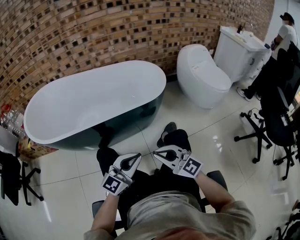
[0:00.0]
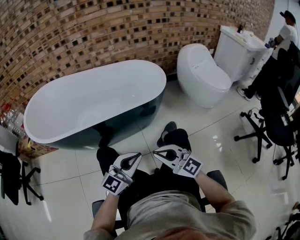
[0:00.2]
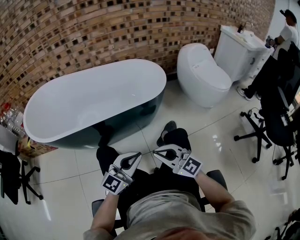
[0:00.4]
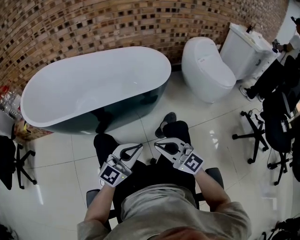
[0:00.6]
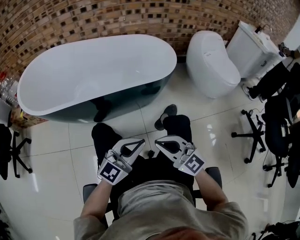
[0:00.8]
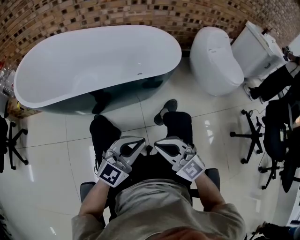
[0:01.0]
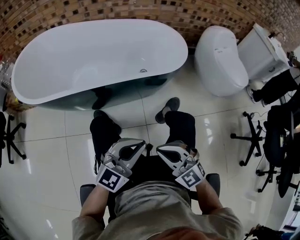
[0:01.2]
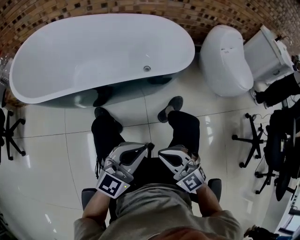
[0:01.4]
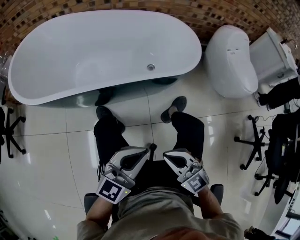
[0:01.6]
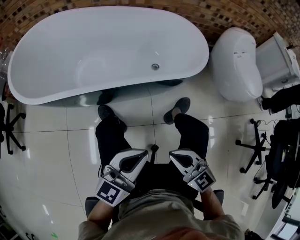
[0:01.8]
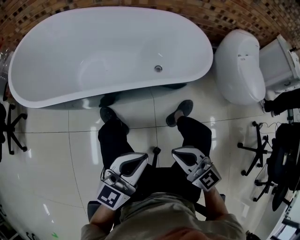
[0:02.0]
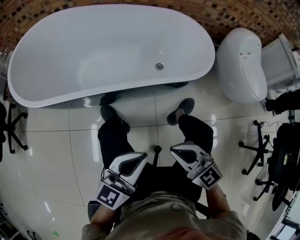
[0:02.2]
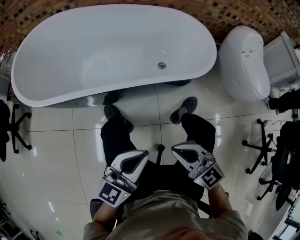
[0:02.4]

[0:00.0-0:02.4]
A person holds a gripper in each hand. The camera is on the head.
0:00.0 to 0:01.2: The right gripper ends up roughly 5 cm from where it was, and rotates about 20 degrees.
0:01.2 to 0:02.4: The right gripper travels forward by about 10 cm. Meanwhile the left gripper heads forward and to the left, covering some 10 cm, and turns by roughly 20 degrees.

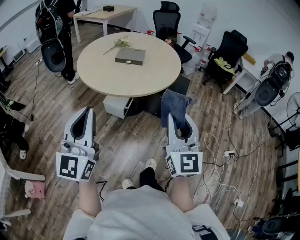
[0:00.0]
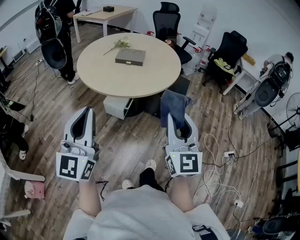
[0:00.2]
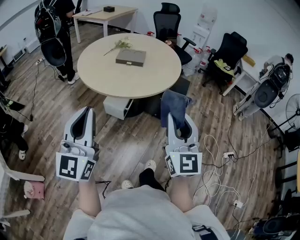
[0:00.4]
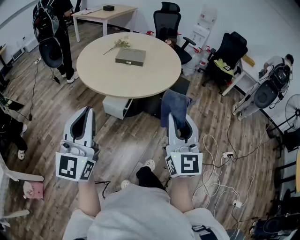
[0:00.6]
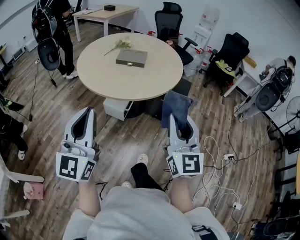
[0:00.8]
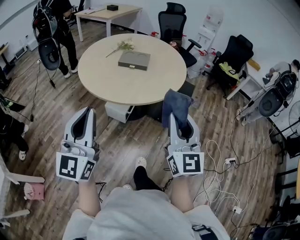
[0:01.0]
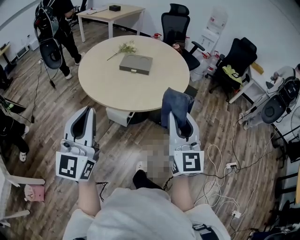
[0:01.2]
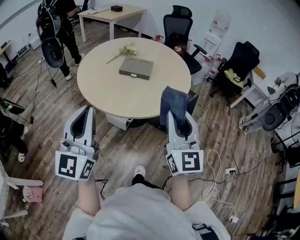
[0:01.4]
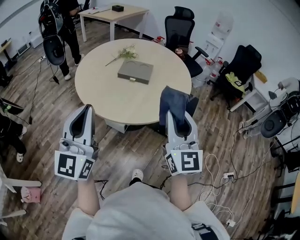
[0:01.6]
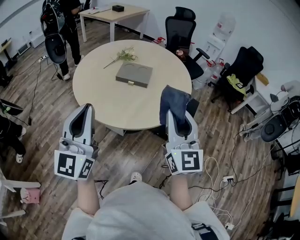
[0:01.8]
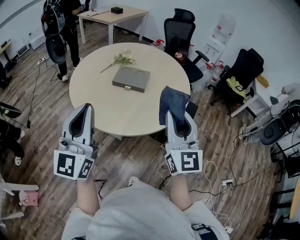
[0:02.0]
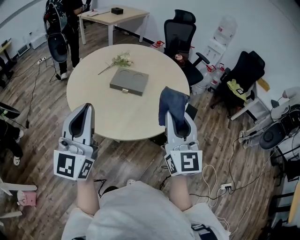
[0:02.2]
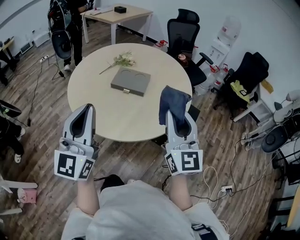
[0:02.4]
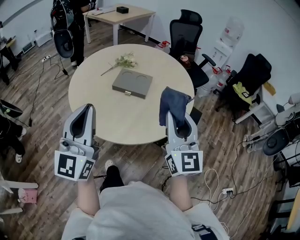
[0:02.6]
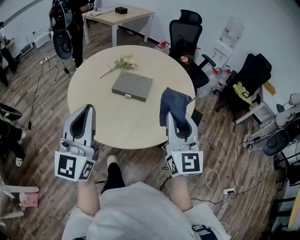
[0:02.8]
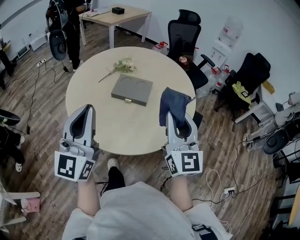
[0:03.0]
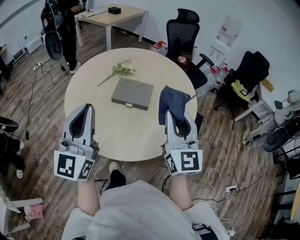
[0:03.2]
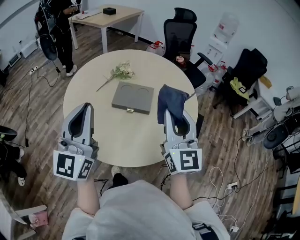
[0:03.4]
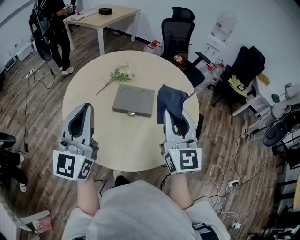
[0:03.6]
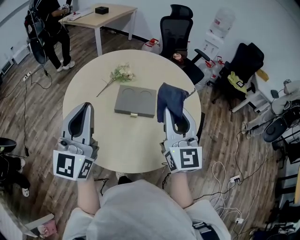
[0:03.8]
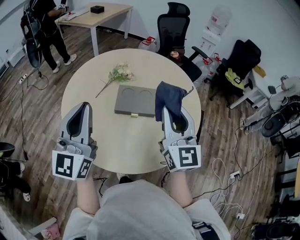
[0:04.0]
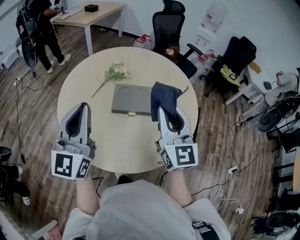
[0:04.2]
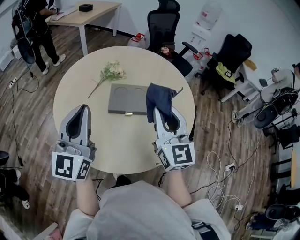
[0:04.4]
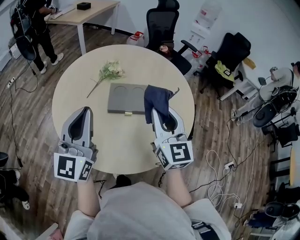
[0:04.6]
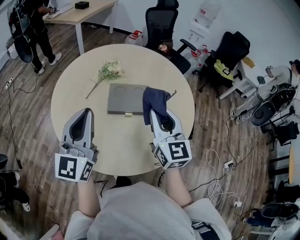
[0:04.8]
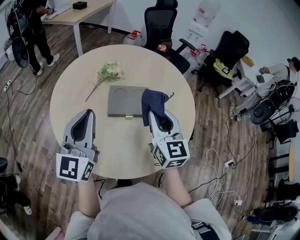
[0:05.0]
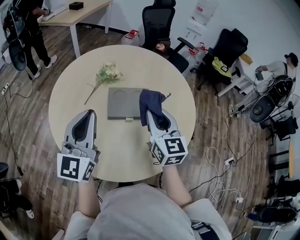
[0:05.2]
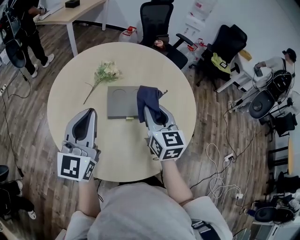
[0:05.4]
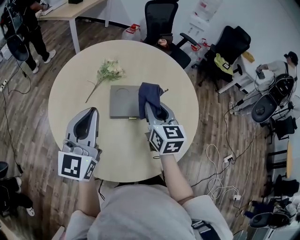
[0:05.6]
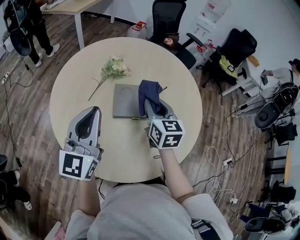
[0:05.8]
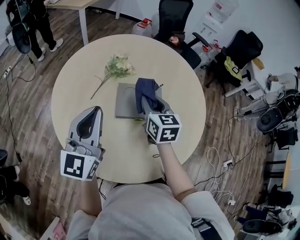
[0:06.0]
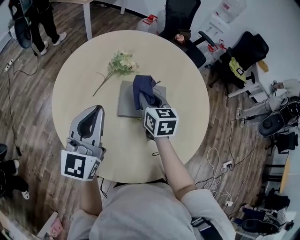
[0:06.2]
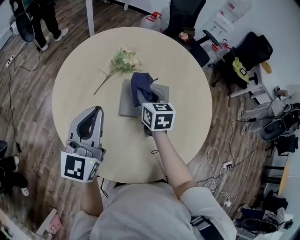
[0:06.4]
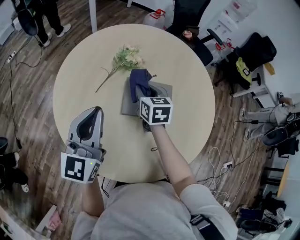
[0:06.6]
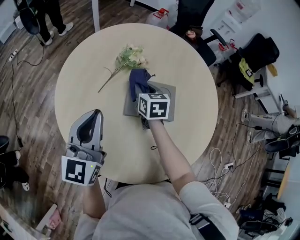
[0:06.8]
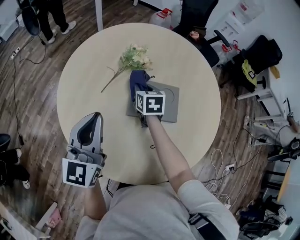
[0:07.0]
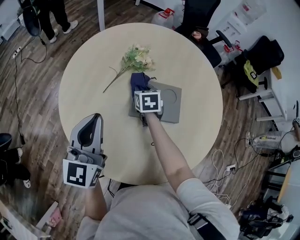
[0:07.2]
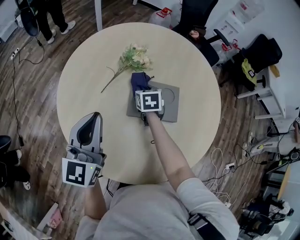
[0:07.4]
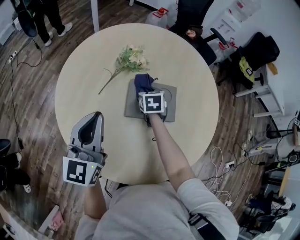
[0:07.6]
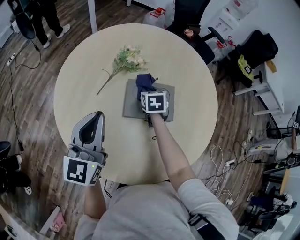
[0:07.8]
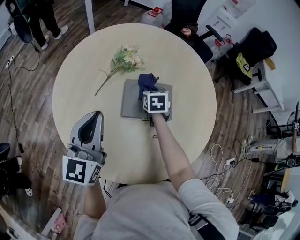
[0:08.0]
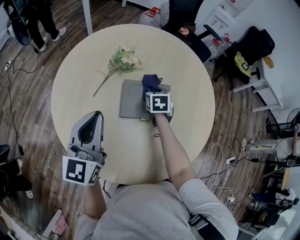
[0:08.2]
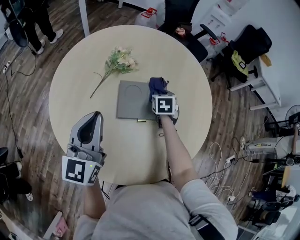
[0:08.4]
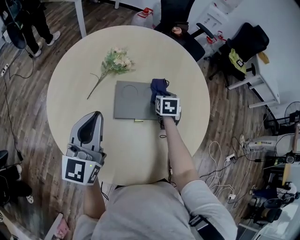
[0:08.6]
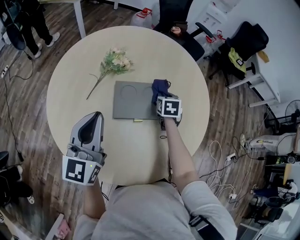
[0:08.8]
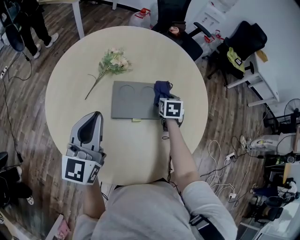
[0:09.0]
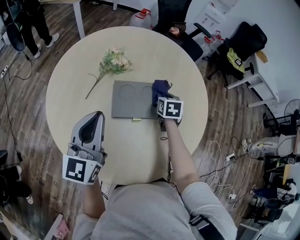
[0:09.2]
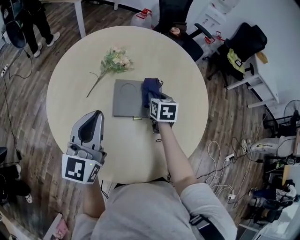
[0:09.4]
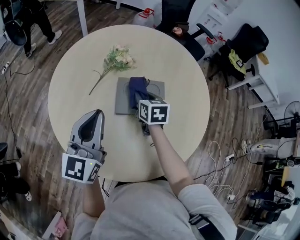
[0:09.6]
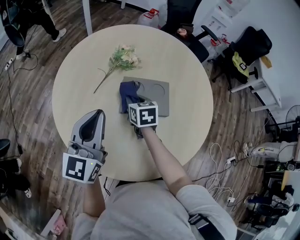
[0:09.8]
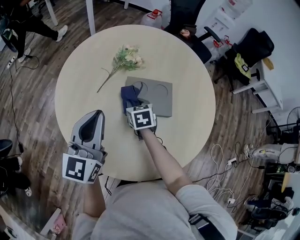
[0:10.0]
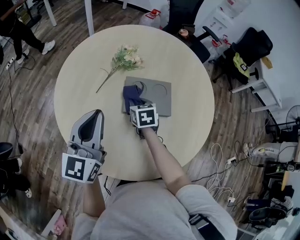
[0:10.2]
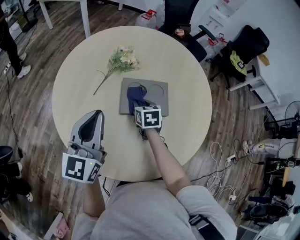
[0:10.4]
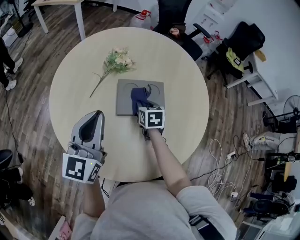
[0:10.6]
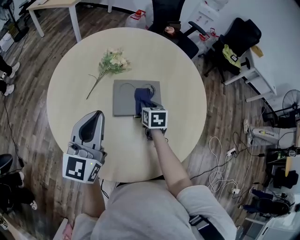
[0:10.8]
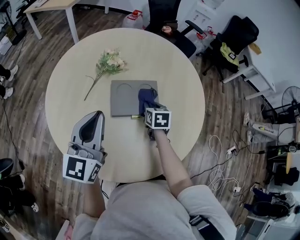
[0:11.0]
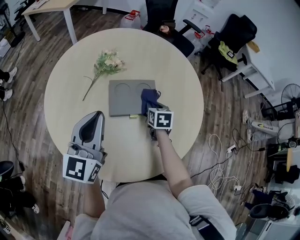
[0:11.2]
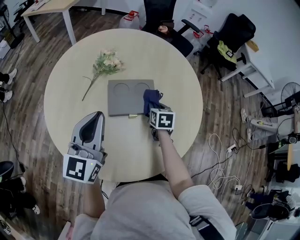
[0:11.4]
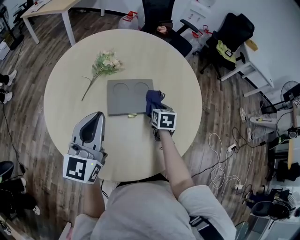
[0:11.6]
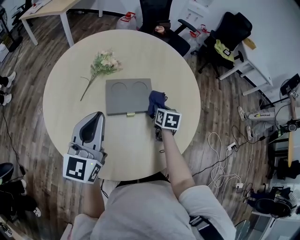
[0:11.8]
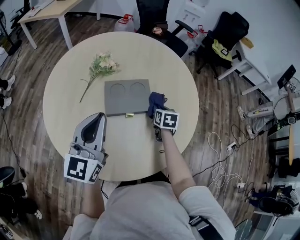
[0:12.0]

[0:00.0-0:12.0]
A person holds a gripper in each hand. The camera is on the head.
0:00.0 to 0:01.6: Both grippers move forward, roughly 20 cm.
0:01.6 to 0:03.0: Both grippers move forward, some 20 cm.
0:03.0 to 0:04.4: The right gripper is displaced to the left and forward by roughly 15 cm. The left gripper is displaced forward and to the left by approximately 20 cm.
0:04.4 to 0:06.0: The right gripper is displaced forward, downward and to the left by about 25 cm, and changes its angle by about 30 degrees. The left gripper shifts approximately 15 cm forward and downward.
0:06.0 to 0:07.6: The right gripper travels downward and forward by approximately 20 cm, and rotates roughly 30 degrees. The left gripper ends up some 5 cm from where it was.
0:07.6 to 0:09.0: The right gripper shifts approximately 20 cm to the right; the left gripper shifts roughly 5 cm to the right.
0:09.0 to 0:10.4: The right gripper is displaced to the left by about 20 cm.
0:10.4 to 0:12.0: The right gripper goes some 20 cm to the right, and rotates some 20 degrees, while the left gripper shifts approximately 10 cm to the right.

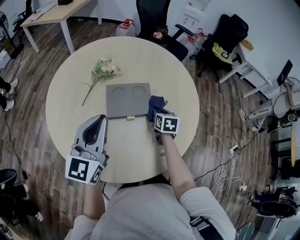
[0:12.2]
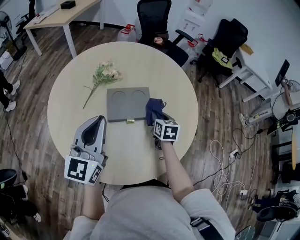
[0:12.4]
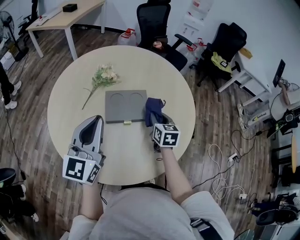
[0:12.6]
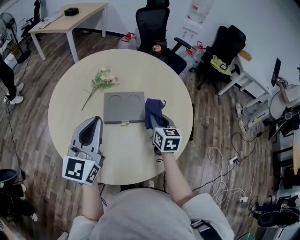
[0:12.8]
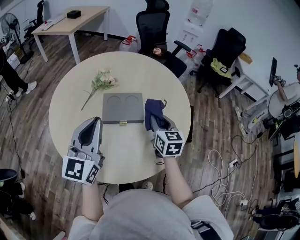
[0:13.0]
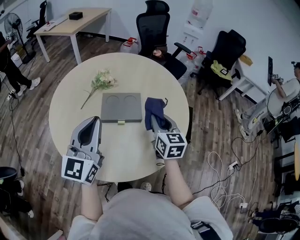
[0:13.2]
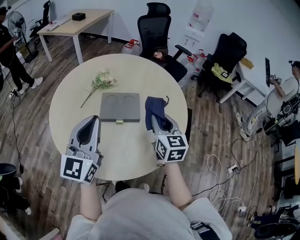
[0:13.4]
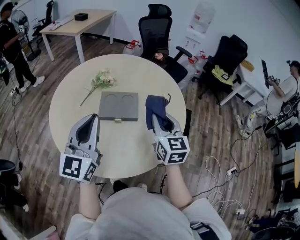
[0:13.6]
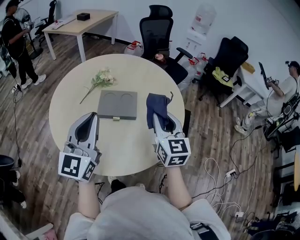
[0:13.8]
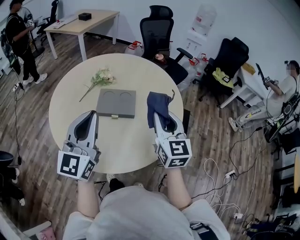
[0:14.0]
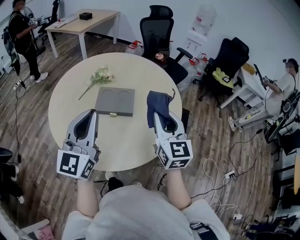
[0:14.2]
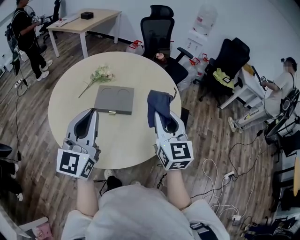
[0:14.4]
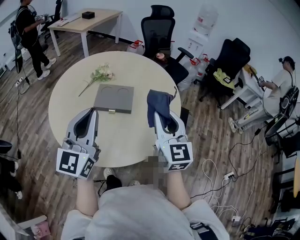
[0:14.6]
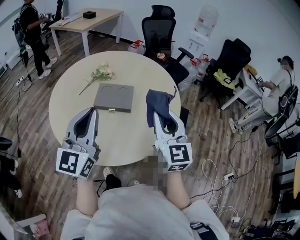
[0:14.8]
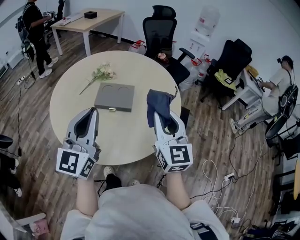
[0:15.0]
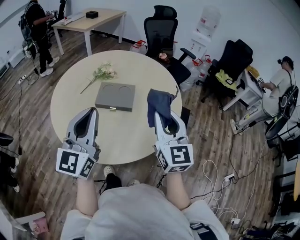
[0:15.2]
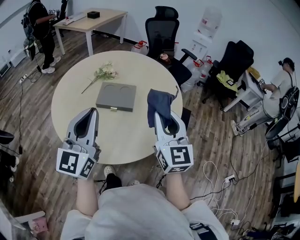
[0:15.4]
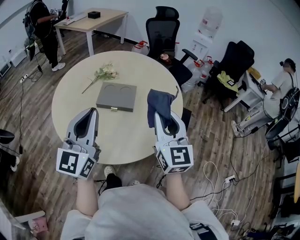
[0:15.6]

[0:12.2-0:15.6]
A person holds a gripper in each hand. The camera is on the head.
0:12.2 to 0:13.8: The left gripper travels to the right, backward and upward by roughly 15 cm; the right gripper shifts about 30 cm upward and backward, and angles its fingers upward, by roughly 40 degrees.
0:13.8 to 0:15.6: The left gripper heads backward, covering approximately 5 cm. The right gripper shifts approximately 10 cm backward and upward.

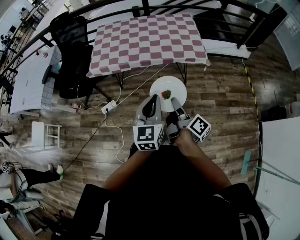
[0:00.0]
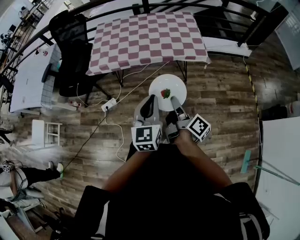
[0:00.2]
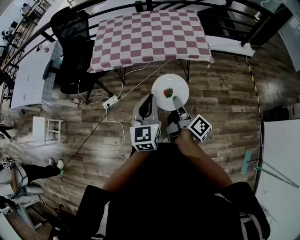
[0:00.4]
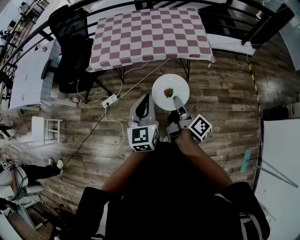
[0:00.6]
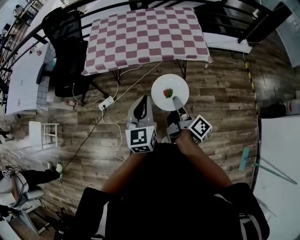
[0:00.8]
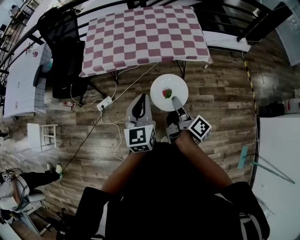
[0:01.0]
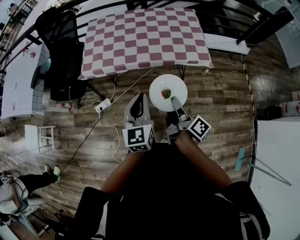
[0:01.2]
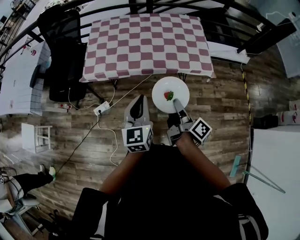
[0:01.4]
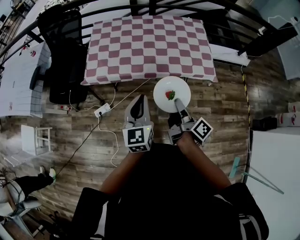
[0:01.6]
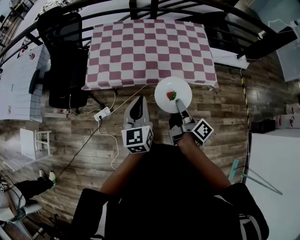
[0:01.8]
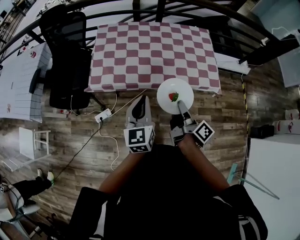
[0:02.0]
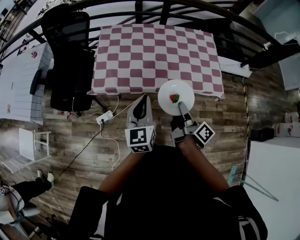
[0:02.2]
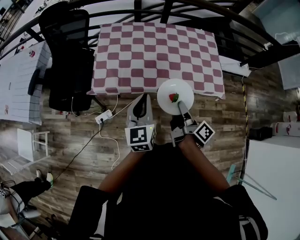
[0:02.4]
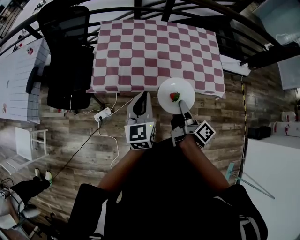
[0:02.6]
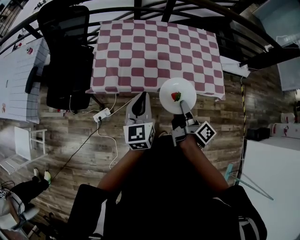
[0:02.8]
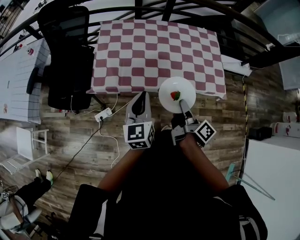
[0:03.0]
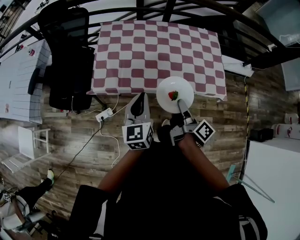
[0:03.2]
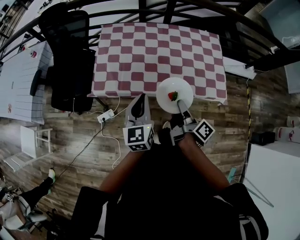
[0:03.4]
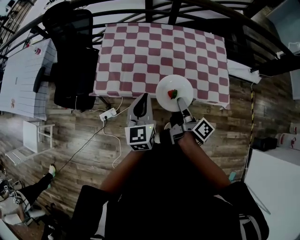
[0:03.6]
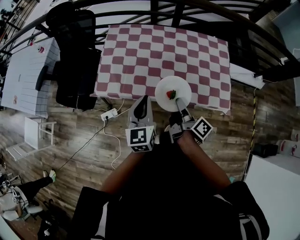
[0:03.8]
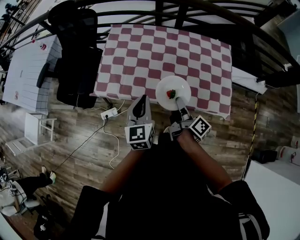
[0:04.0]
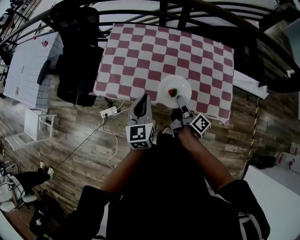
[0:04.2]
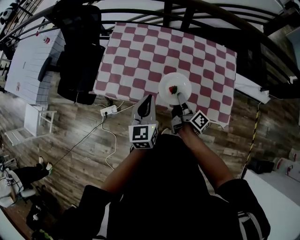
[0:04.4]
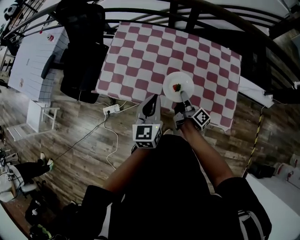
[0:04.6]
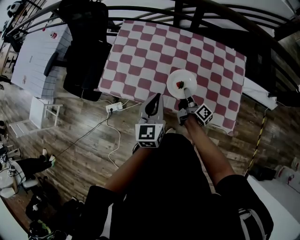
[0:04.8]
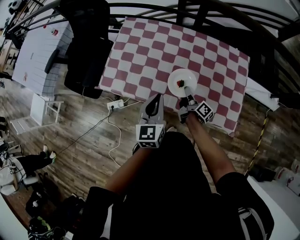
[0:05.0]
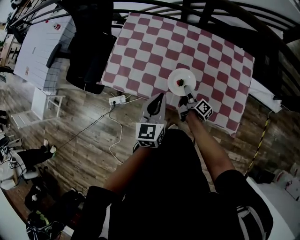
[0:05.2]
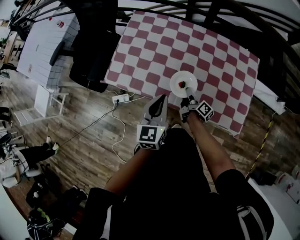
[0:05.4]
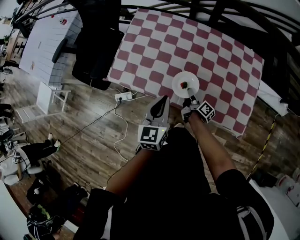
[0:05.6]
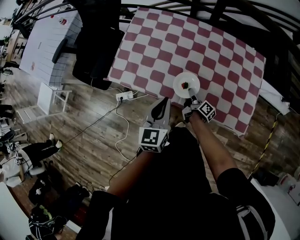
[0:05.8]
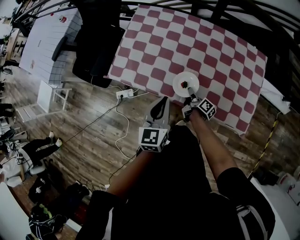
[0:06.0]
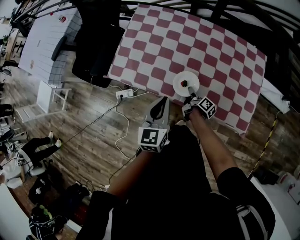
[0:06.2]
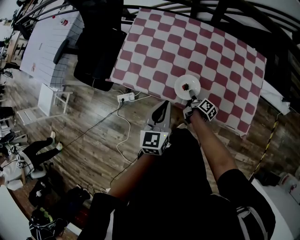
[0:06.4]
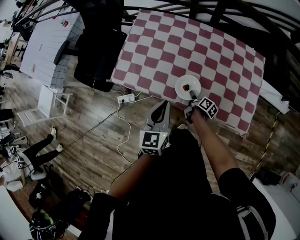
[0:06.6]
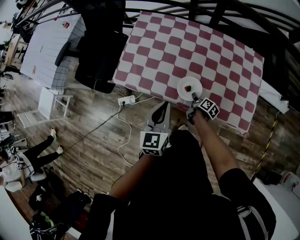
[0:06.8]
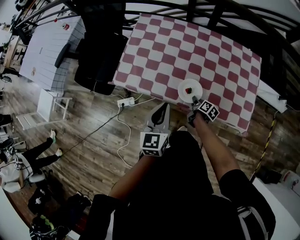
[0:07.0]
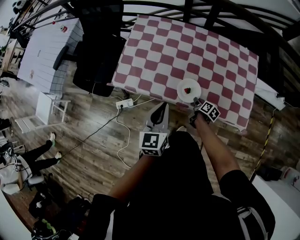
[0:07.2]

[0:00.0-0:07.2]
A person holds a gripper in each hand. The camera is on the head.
0:00.0 to 0:01.4: The left gripper goes about 20 cm forward and to the left. The right gripper goes roughly 15 cm forward.
0:01.4 to 0:02.8: The grippers both shift forward and to the left by approximately 20 cm.
0:02.8 to 0:04.4: The left gripper moves forward and to the right, roughly 15 cm. Meanwhile the right gripper moves forward and downward, roughly 20 cm.
0:04.4 to 0:05.8: The right gripper moves downward, about 20 cm.
0:05.8 to 0:07.2: The right gripper moves backward, approximately 5 cm, and turns by approximately 30 degrees. Meanwhile the left gripper moves roughly 5 cm.
